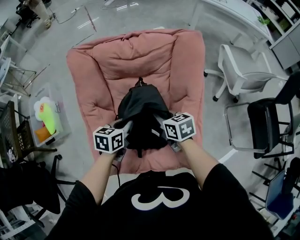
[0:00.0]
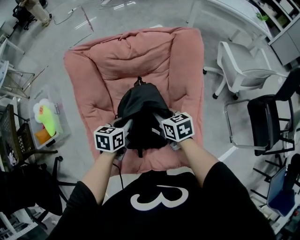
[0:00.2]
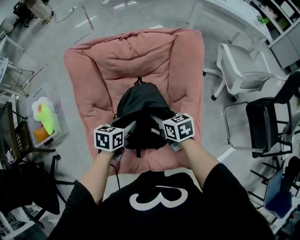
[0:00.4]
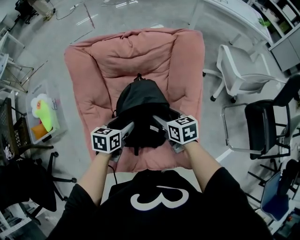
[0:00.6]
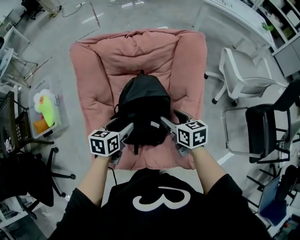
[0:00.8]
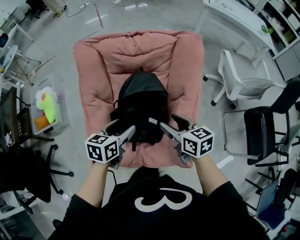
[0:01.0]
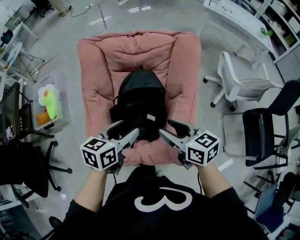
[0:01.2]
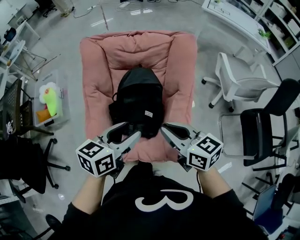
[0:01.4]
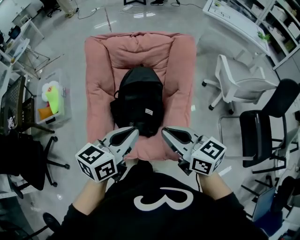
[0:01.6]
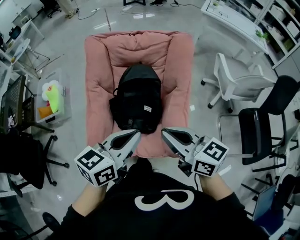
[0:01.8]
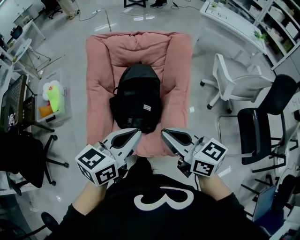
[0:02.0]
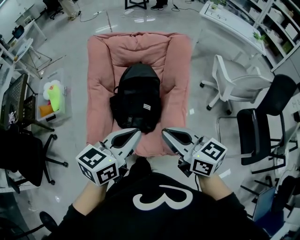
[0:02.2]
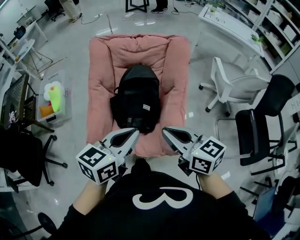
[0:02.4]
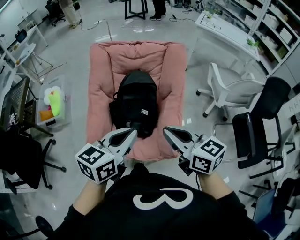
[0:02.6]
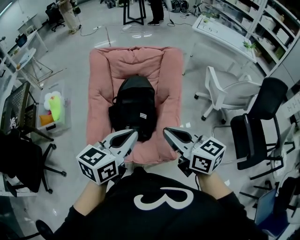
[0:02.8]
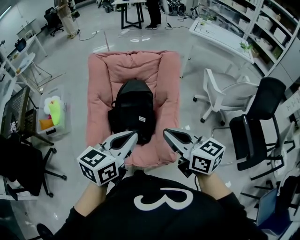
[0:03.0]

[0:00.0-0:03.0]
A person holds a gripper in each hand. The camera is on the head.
0:00.0 to 0:01.6: The grippers both shift upward and backward by some 30 cm. The right gripper turns by some 30 degrees, and opens, then closes again, while the left gripper turns by some 20 degrees, and opens and closes again.
0:01.6 to 0:03.0: Both grippers move backward and upward, some 10 cm.

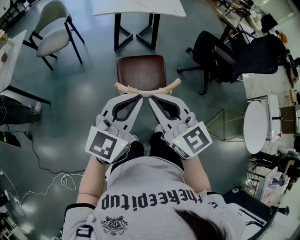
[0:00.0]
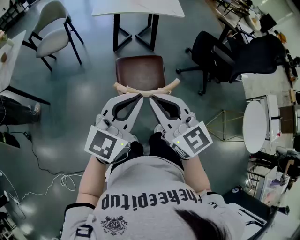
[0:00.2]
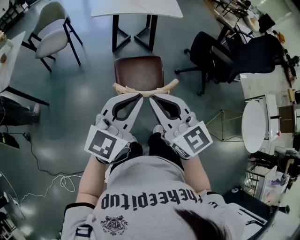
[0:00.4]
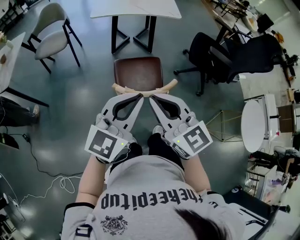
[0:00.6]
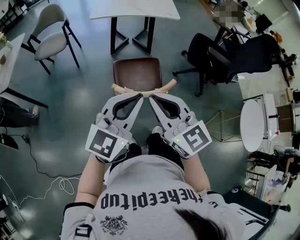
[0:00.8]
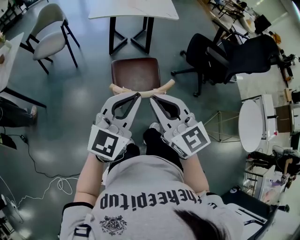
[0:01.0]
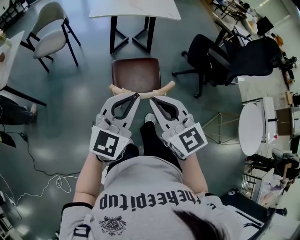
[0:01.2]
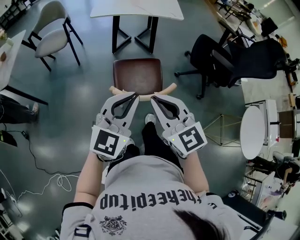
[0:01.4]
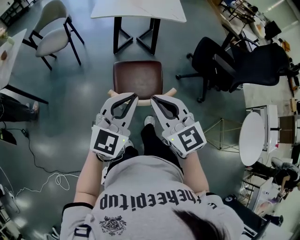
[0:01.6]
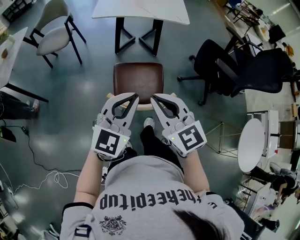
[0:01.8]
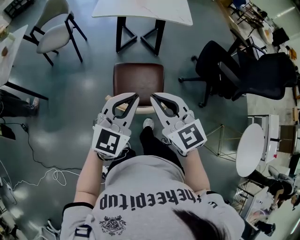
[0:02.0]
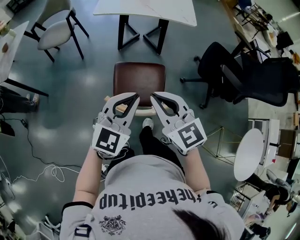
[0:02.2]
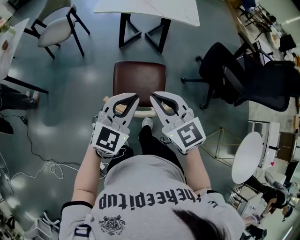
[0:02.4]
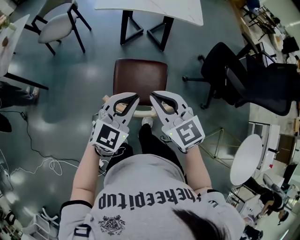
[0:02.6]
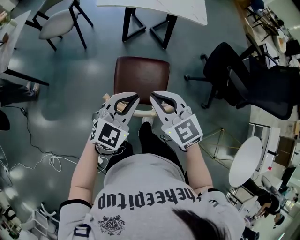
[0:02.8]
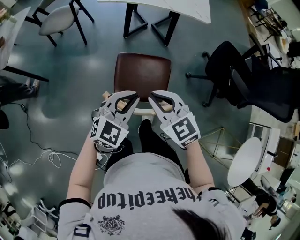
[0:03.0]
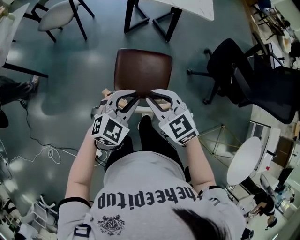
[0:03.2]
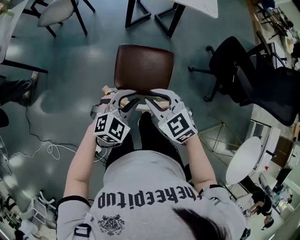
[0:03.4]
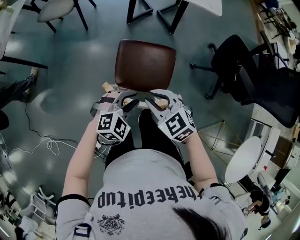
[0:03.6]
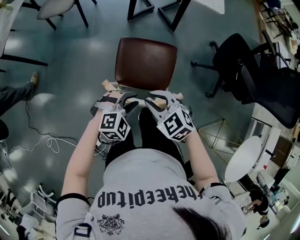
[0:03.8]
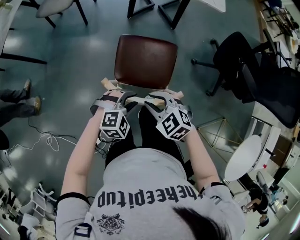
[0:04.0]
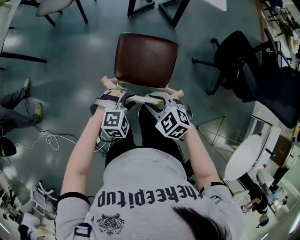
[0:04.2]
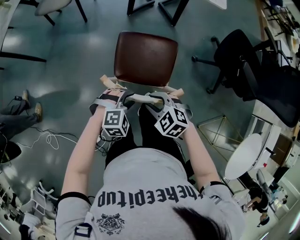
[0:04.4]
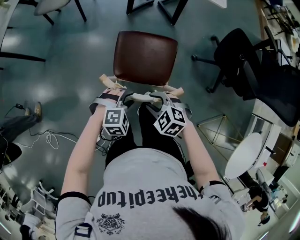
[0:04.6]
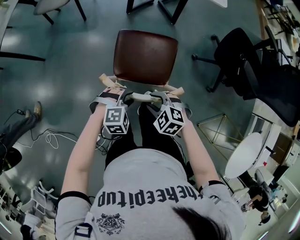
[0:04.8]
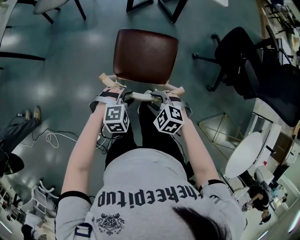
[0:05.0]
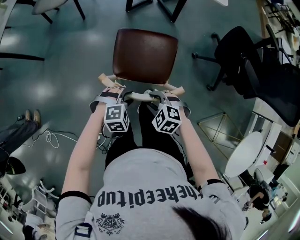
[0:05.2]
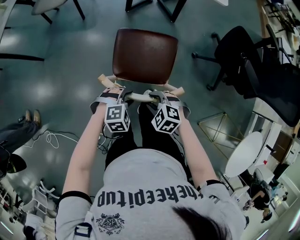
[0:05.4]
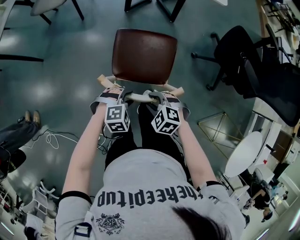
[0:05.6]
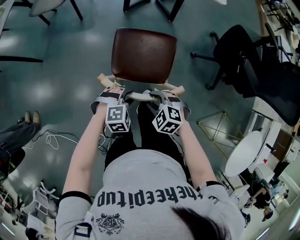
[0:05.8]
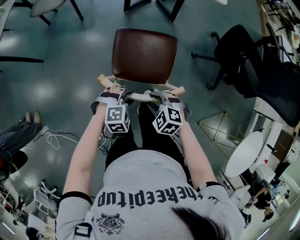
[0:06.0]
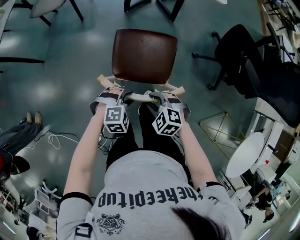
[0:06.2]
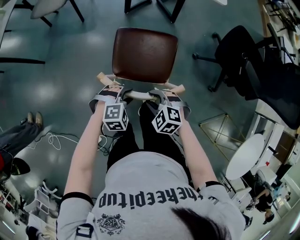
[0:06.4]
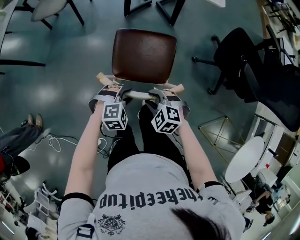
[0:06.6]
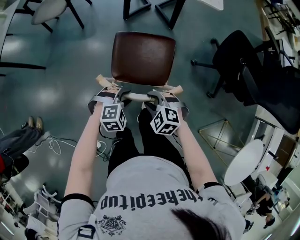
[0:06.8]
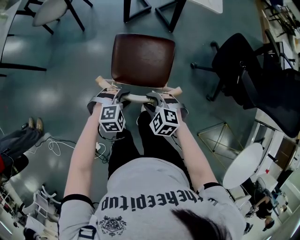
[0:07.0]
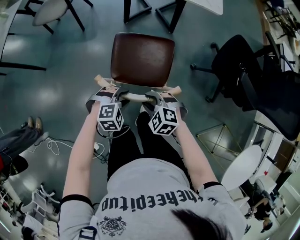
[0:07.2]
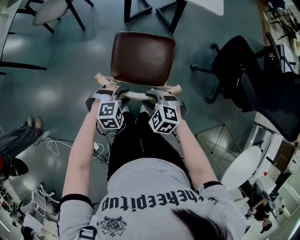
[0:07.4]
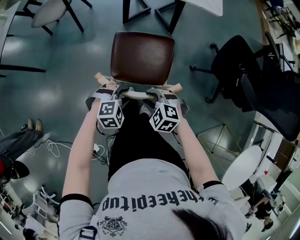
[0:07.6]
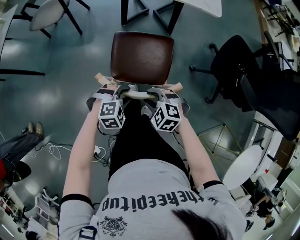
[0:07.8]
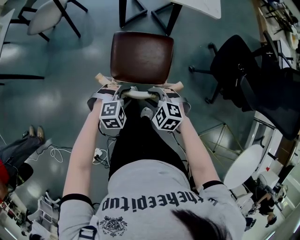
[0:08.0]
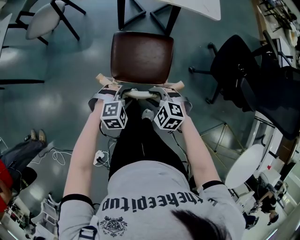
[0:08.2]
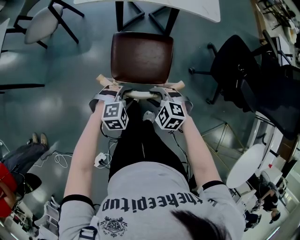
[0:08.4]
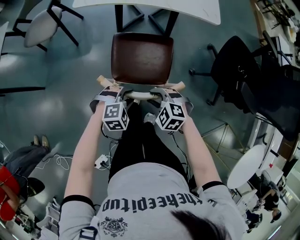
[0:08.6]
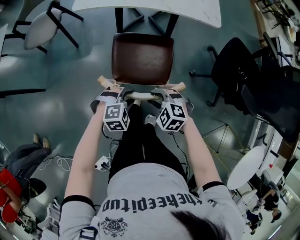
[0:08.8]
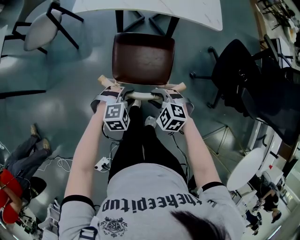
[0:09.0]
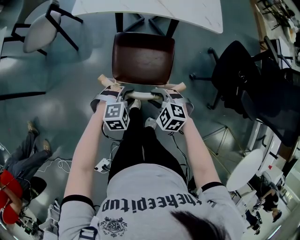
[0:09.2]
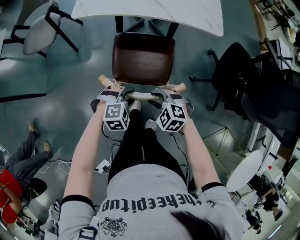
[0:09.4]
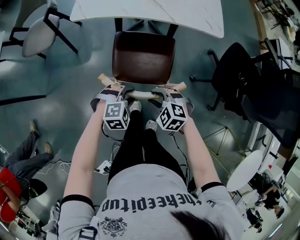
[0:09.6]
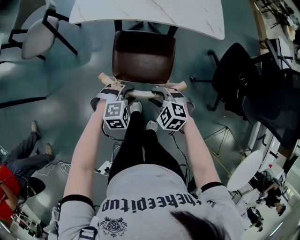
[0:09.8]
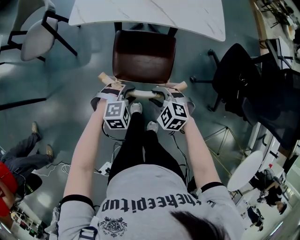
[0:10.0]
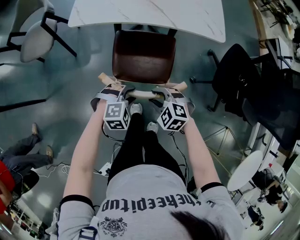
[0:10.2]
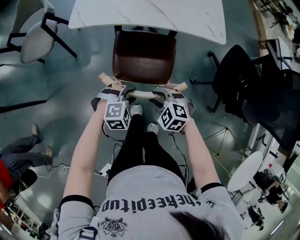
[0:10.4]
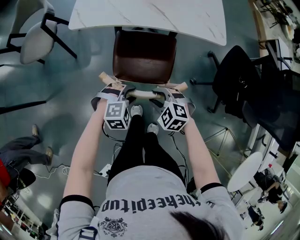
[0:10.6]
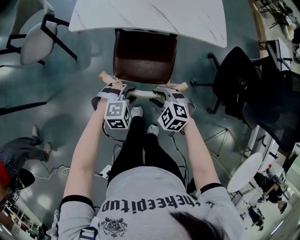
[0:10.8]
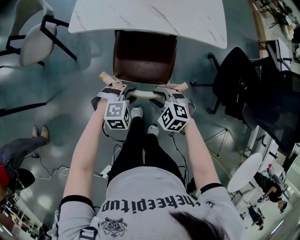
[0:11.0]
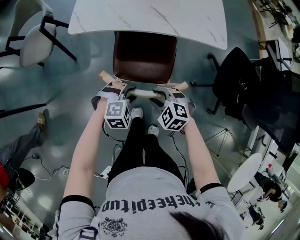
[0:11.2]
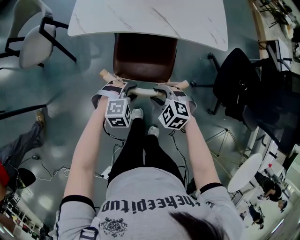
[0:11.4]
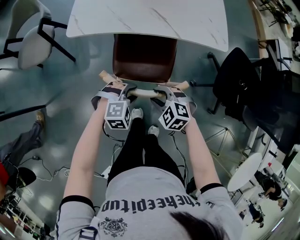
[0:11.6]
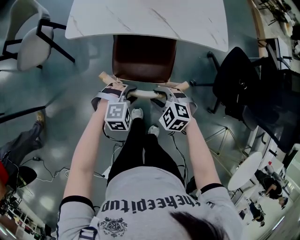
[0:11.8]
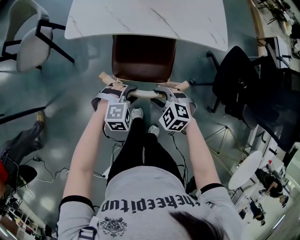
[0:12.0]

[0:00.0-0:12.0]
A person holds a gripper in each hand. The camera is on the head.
0:00.0 to 0:01.6: The two grippers go about 5 cm forward.
0:01.6 to 0:03.0: The left gripper is displaced downward and forward by about 15 cm. Meanwhile the right gripper goes roughly 15 cm forward and downward, and rotates approximately 20 degrees.
0:03.0 to 0:04.4: The right gripper heads downward and backward, covering roughly 20 cm, turns by some 30 degrees, and opens up. The left gripper travels downward by about 20 cm, tilts its fingers about 30 degrees downward, and opens.
0:04.4 to 0:06.0: The right gripper travels downward by roughly 5 cm.
0:06.0 to 0:07.6: Both grippers move forward, about 10 cm.
0:07.6 to 0:09.0: The two grippers go roughly 10 cm forward.
0:09.0 to 0:10.4: The two grippers go roughly 10 cm forward.
0:10.4 to 0:12.0: The grippers make only small movements.

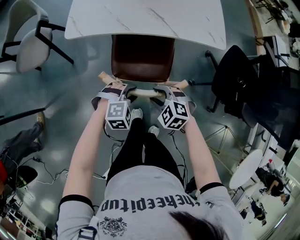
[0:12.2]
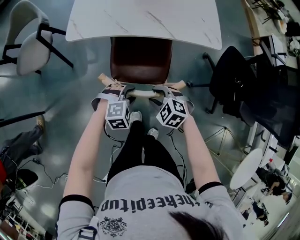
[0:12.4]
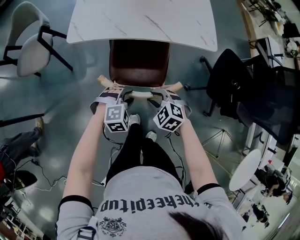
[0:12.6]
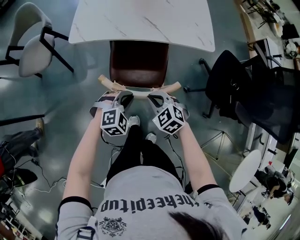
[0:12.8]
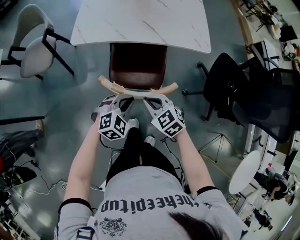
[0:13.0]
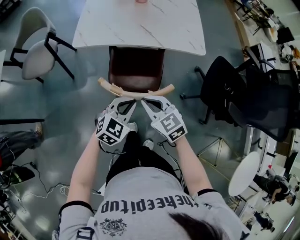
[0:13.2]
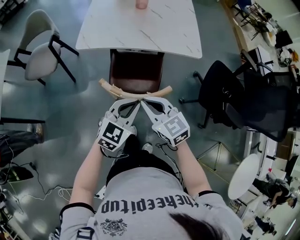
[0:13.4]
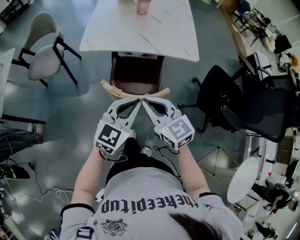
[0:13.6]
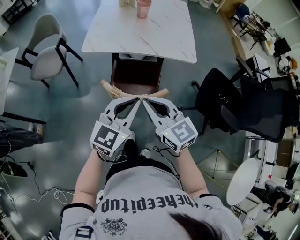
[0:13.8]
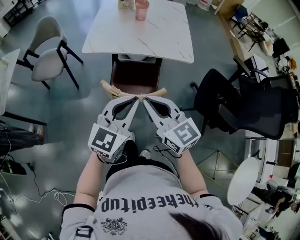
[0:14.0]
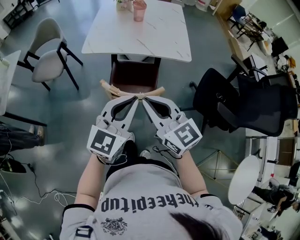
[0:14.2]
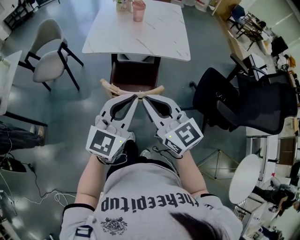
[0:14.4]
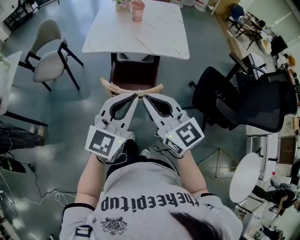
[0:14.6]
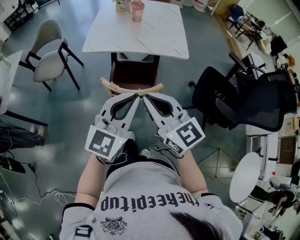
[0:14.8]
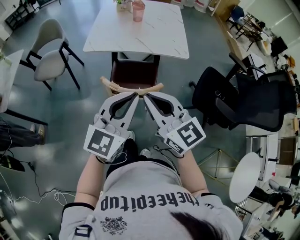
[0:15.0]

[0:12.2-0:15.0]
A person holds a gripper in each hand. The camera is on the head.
0:12.2 to 0:13.6: Both grippers move upward, about 25 cm. The right gripper tilts its fingers about 40 degrees upward, and closes its fingers. Meanwhile the left gripper points its fingers roughly 40 degrees further upward, and closes up.
0:13.6 to 0:15.0: The two grippers go some 15 cm upward and backward.

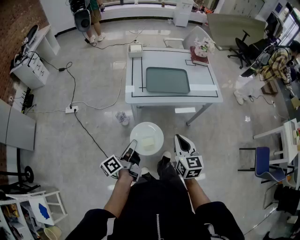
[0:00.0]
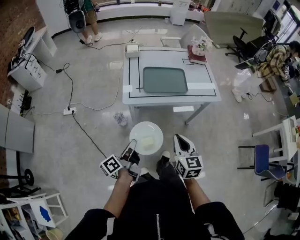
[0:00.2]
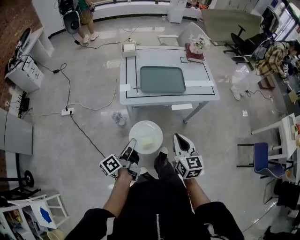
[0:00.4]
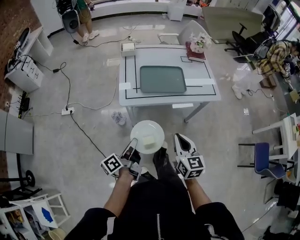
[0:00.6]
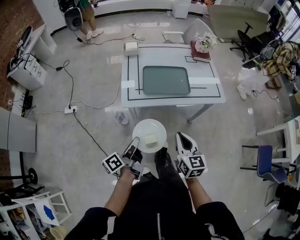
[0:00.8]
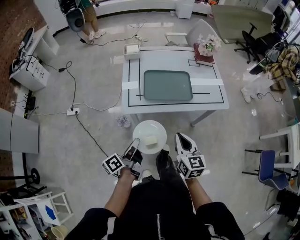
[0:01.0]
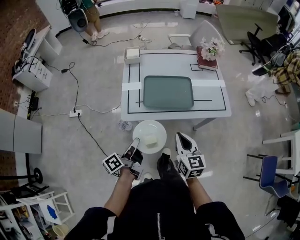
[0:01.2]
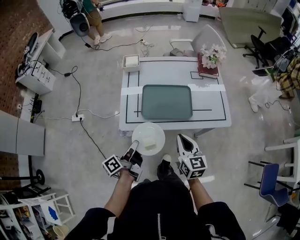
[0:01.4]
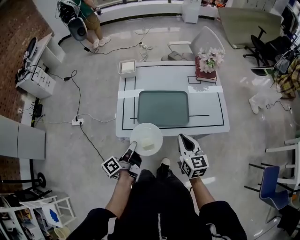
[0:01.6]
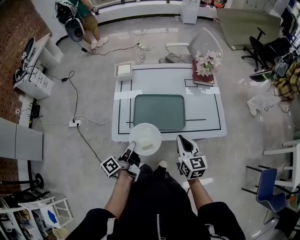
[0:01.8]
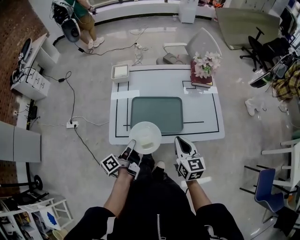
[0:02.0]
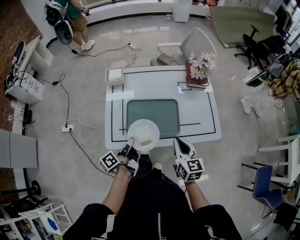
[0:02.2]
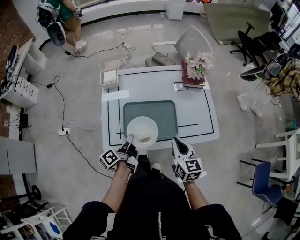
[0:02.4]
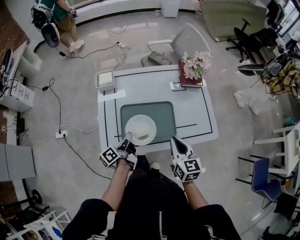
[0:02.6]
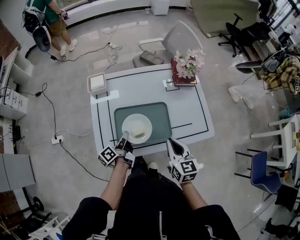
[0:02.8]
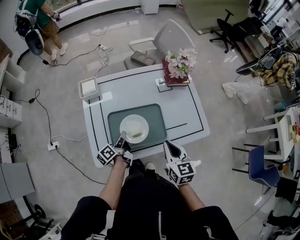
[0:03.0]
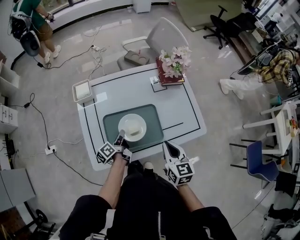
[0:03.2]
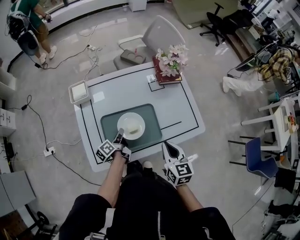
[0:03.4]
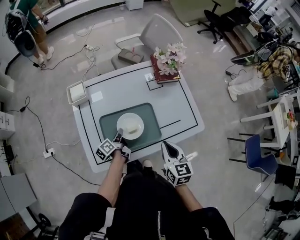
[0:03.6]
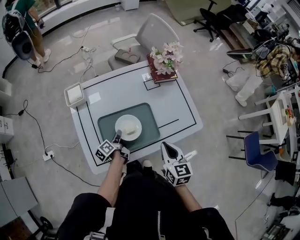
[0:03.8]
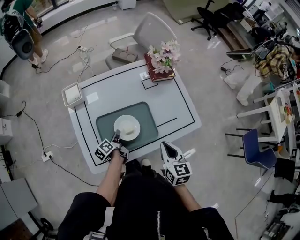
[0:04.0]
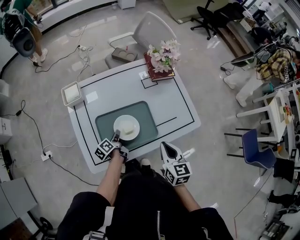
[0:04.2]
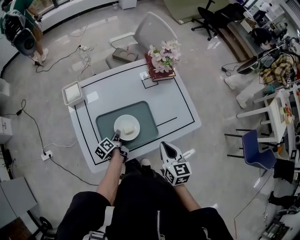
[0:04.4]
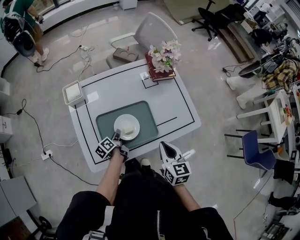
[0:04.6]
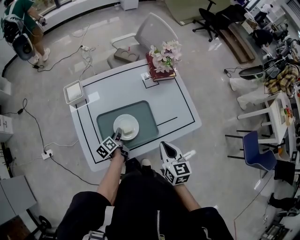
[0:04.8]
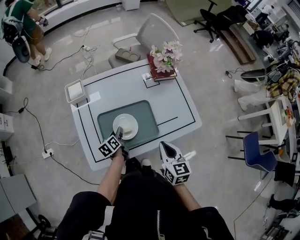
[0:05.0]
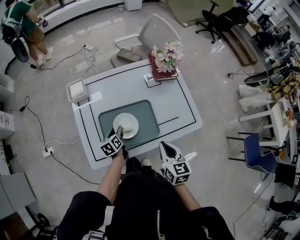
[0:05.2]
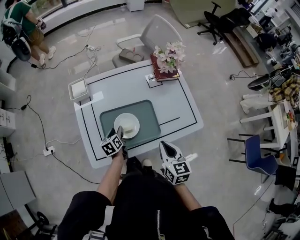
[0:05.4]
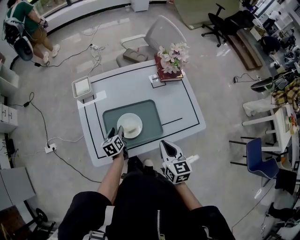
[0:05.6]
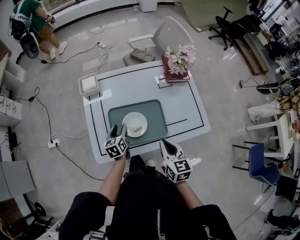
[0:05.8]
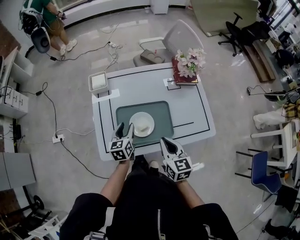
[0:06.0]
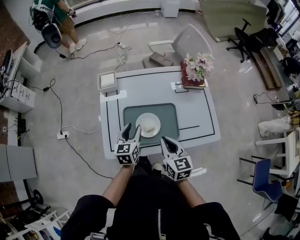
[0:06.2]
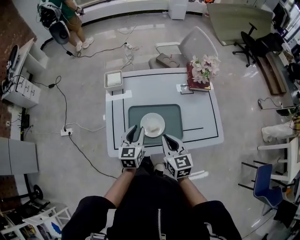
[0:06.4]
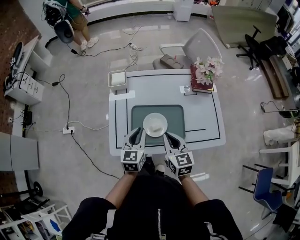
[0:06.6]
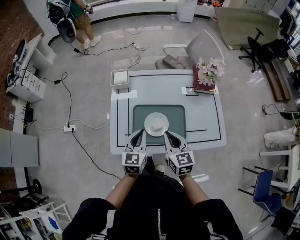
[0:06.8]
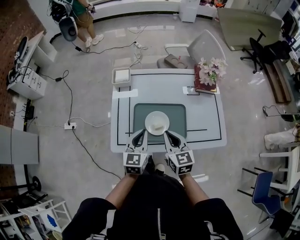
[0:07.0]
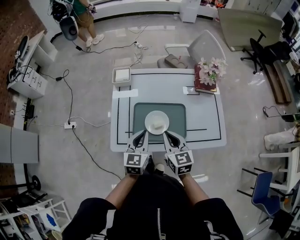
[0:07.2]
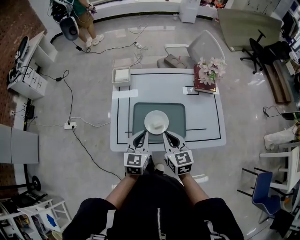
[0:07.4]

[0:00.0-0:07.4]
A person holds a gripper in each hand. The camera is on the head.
0:00.0 to 0:01.4: The two grippers go roughly 20 cm forward.
0:01.4 to 0:03.0: The right gripper shifts approximately 15 cm forward and to the right; the left gripper moves forward, roughly 25 cm.
0:03.0 to 0:04.4: The left gripper goes roughly 10 cm downward.
0:04.4 to 0:06.0: The right gripper shifts some 5 cm to the left. The left gripper is displaced upward by roughly 15 cm, twists approximately 50 degrees clockwise, seen from behind, and opens.
0:06.0 to 0:07.4: The right gripper moves to the left, some 5 cm, while the left gripper travels backward and upward by approximately 10 cm, and closes up.
